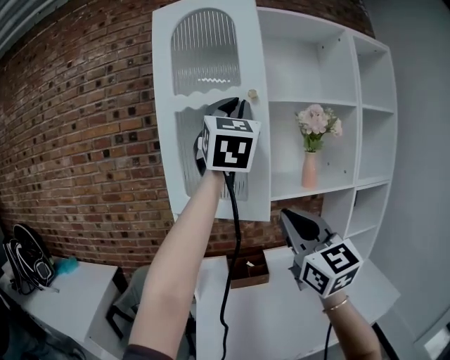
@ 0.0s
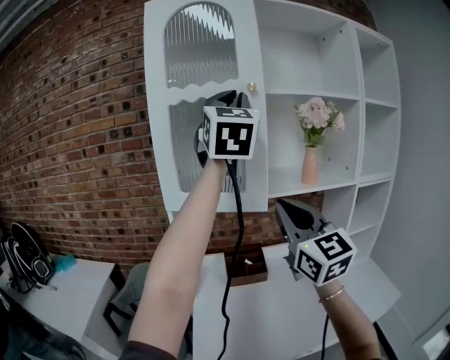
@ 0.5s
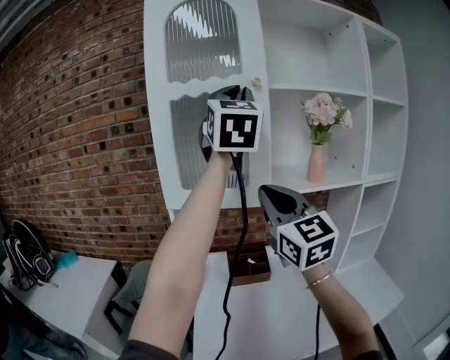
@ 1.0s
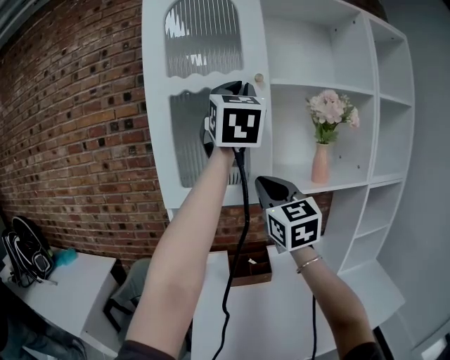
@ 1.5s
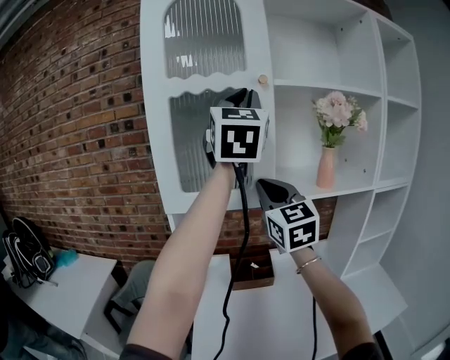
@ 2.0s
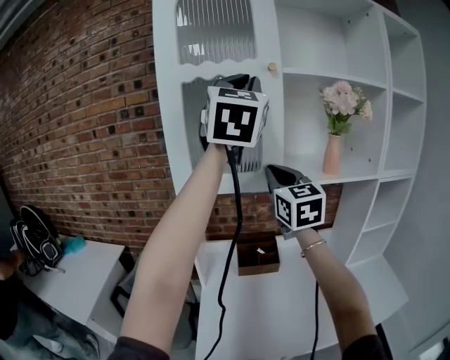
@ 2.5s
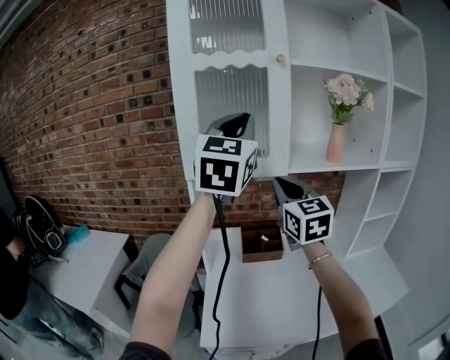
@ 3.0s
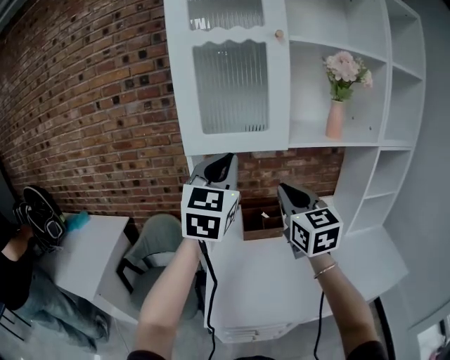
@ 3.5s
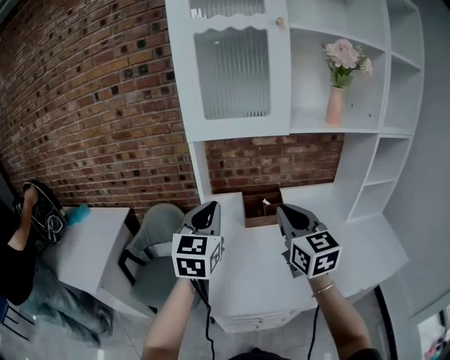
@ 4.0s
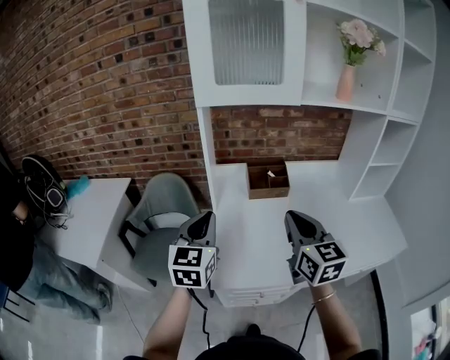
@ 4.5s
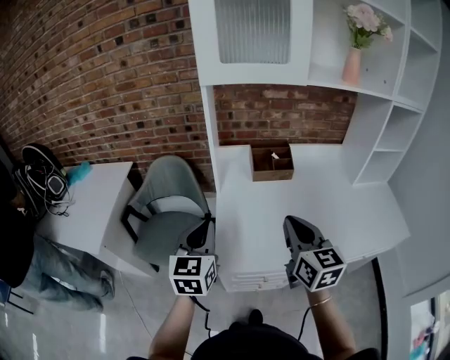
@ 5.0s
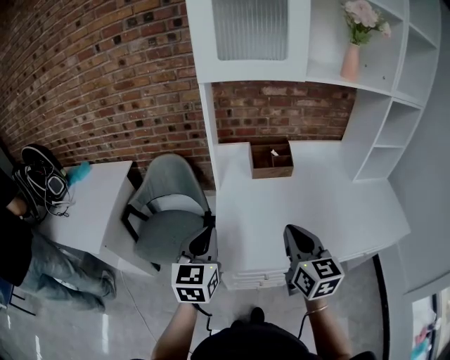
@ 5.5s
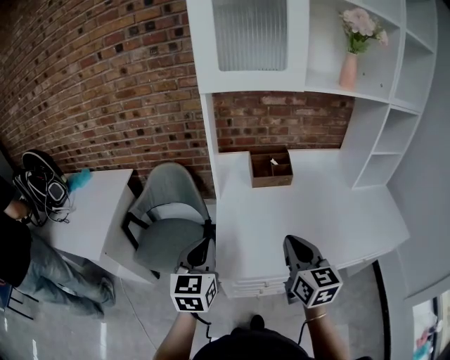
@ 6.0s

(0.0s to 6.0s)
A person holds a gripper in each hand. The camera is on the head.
0.0s - 2.0s: The right gripper moves forward, about 20 cm. Meanwhile the left gripper is displaced forward by some 10 cm.
2.0s - 4.0s: The right gripper moves downward and backward, roughly 25 cm. Meanwhile the left gripper shifts some 40 cm downward and to the left, and swivels some 30 degrees.
4.0s - 6.0s: The left gripper travels downward, backward and to the left by some 20 cm. Meanwhile the right gripper goes about 20 cm downward and backward.

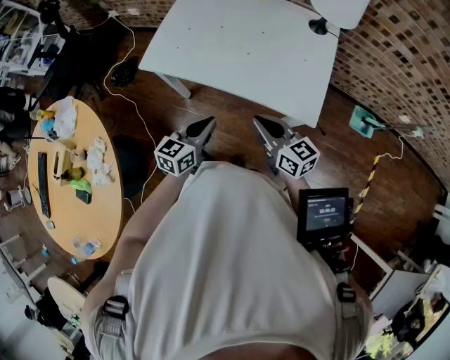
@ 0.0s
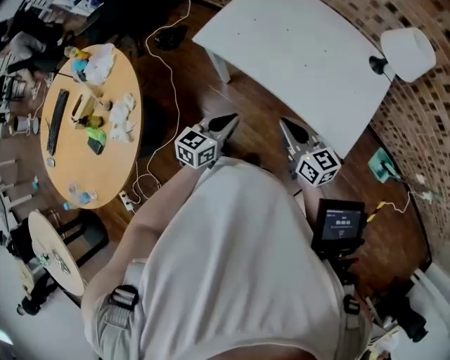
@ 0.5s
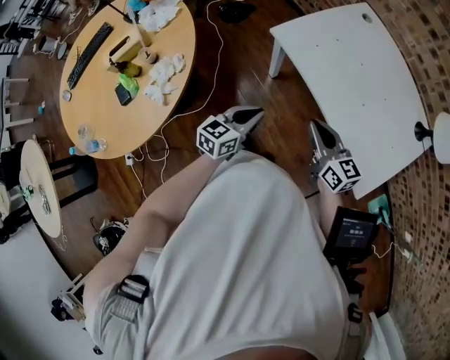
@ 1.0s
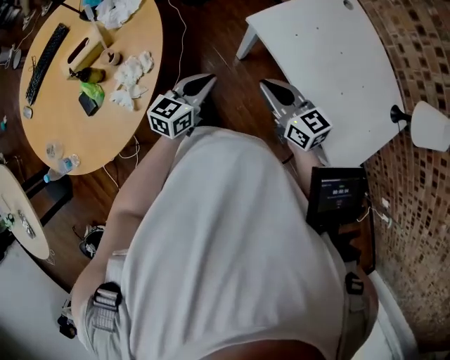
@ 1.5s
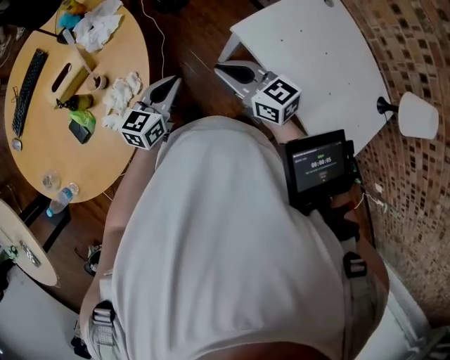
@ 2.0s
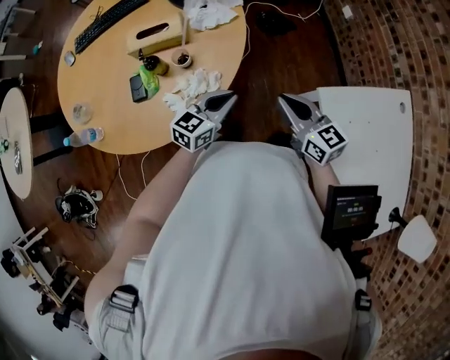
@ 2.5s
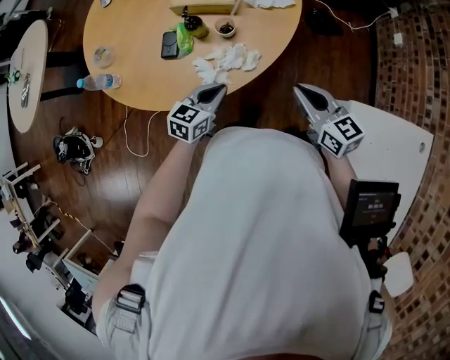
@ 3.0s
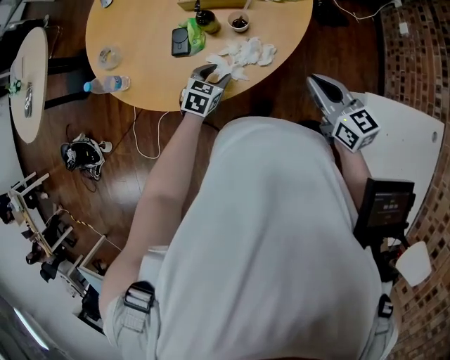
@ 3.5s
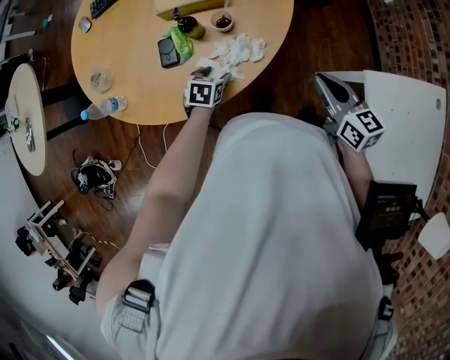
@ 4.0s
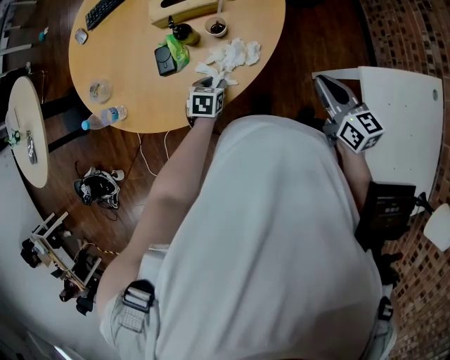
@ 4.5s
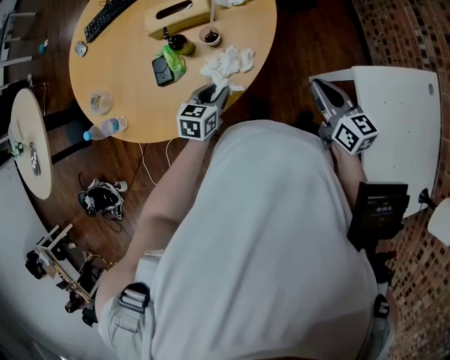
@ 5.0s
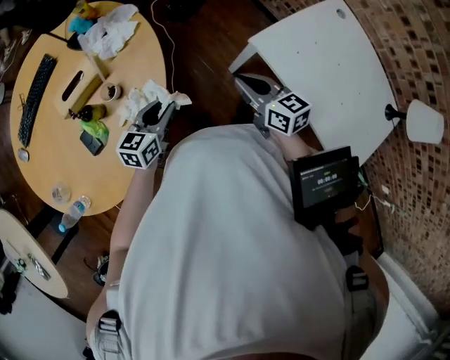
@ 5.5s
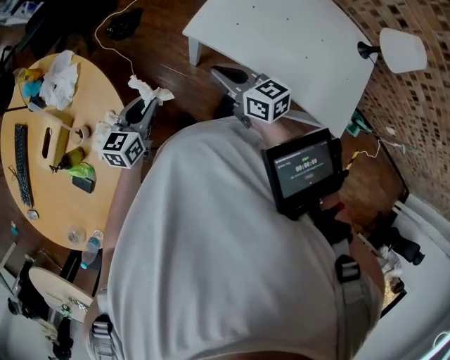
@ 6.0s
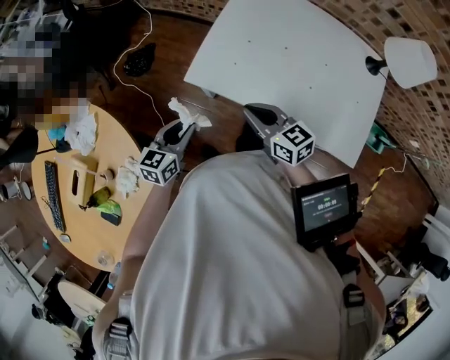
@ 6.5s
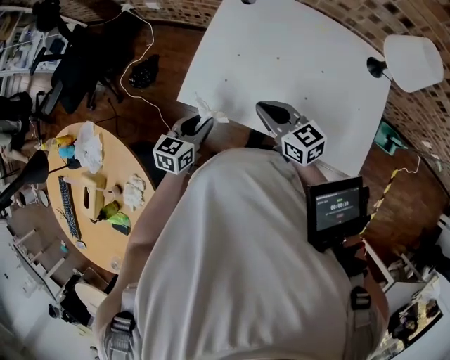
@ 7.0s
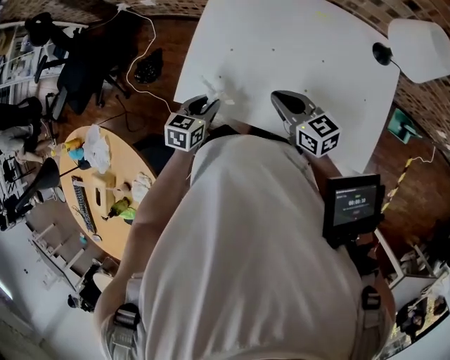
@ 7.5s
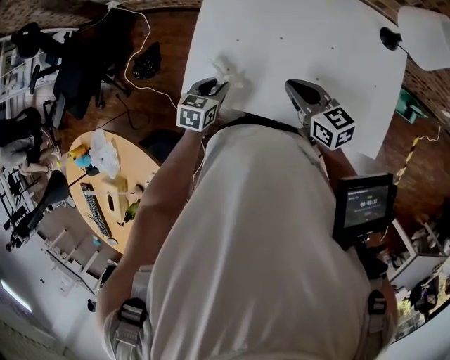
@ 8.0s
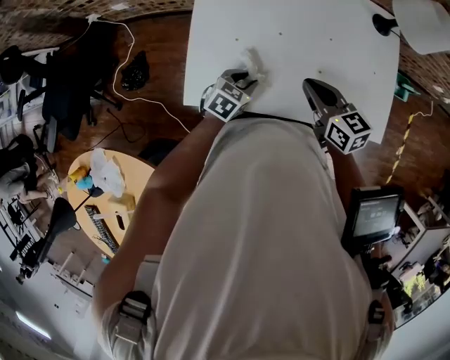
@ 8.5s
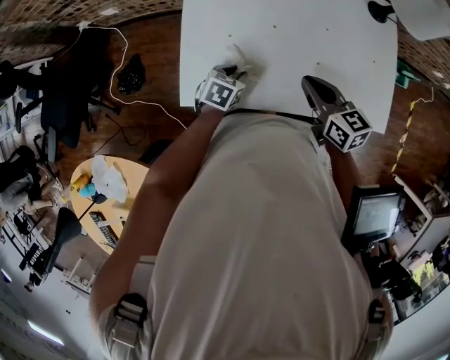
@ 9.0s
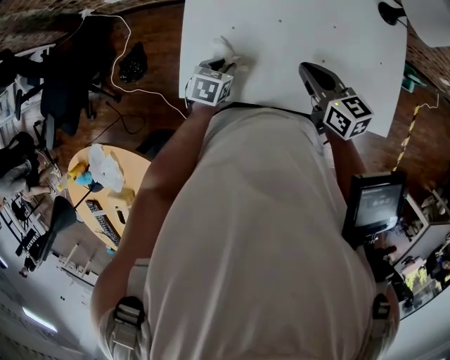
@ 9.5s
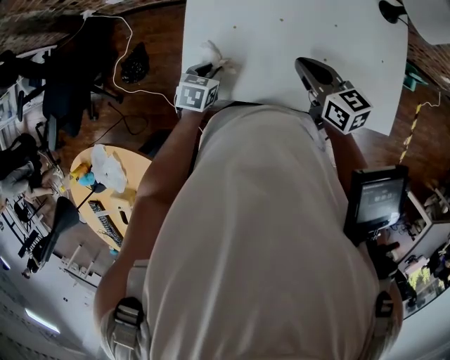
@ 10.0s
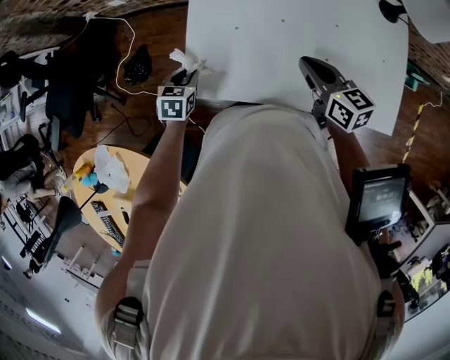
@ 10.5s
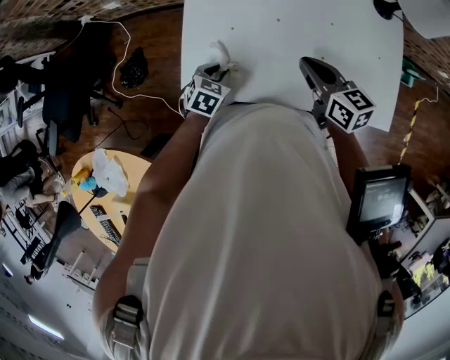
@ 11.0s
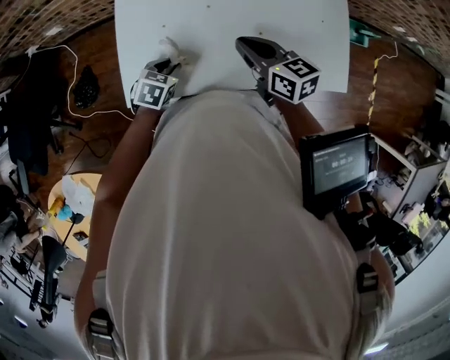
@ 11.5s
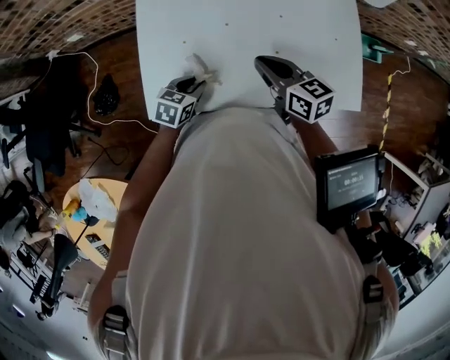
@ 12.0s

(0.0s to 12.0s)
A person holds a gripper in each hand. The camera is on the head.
0.0s - 2.0s: The left gripper ends up some 40 cm from where it was, and changes its angle by approximately 30 degrees. The right gripper ends up about 50 cm from where it was, and swivels about 40 degrees.
2.0s - 4.0s: The left gripper moves approximately 30 cm, tilts its fingers some 40 degrees downward, and opens its fingers. Meanwhile the right gripper ends up approximately 10 cm from where it was.
4.0s - 6.0s: The right gripper ends up roughly 20 cm from where it was, and swivels approximately 40 degrees. Meanwhile the left gripper changes place by approximately 30 cm, tips its fingers upward by about 30 degrees, and closes.
6.0s - 8.0s: The two grippers go approximately 35 cm to the right and forward. The right gripper swivels about 20 degrees; the left gripper swivels roughly 30 degrees.
8.0s - 10.0s: The left gripper is displaced downward by some 5 cm, and travels to the right and back again, approximately 5 cm each way.
10.0s - 12.0s: The left gripper travels to the right by approximately 10 cm.

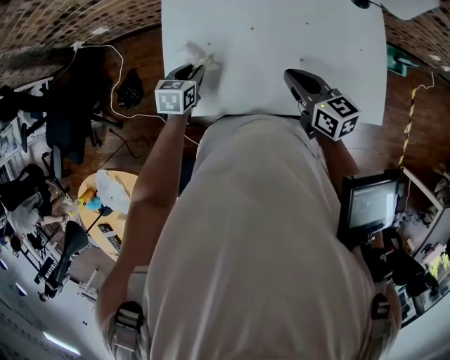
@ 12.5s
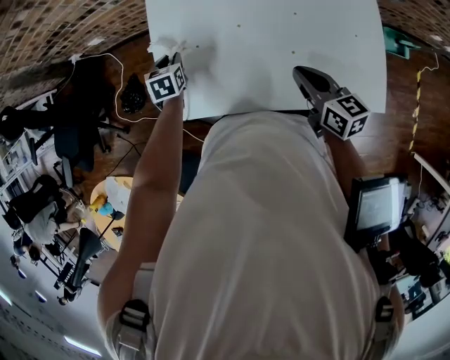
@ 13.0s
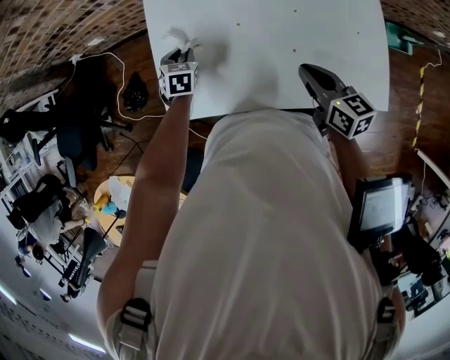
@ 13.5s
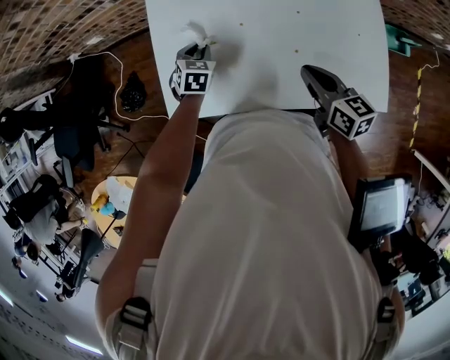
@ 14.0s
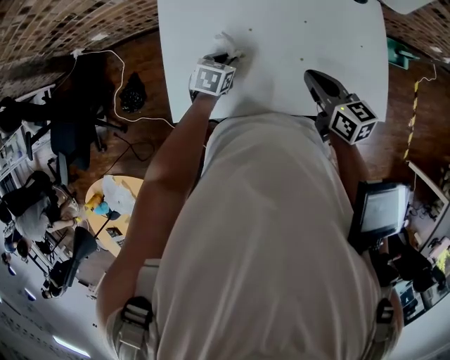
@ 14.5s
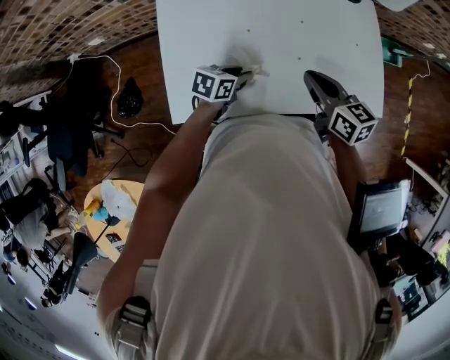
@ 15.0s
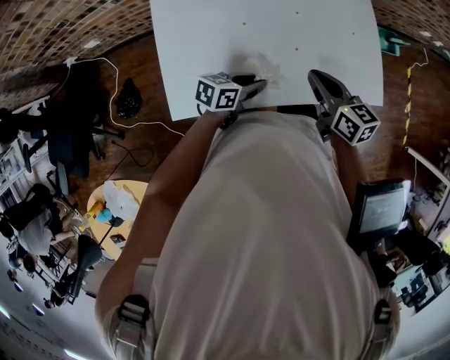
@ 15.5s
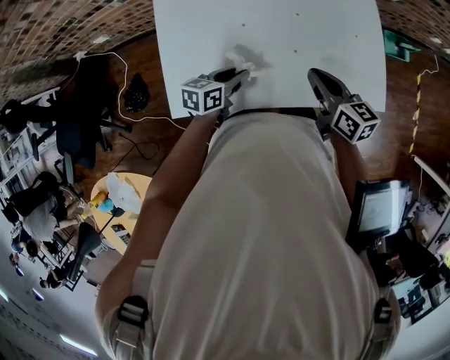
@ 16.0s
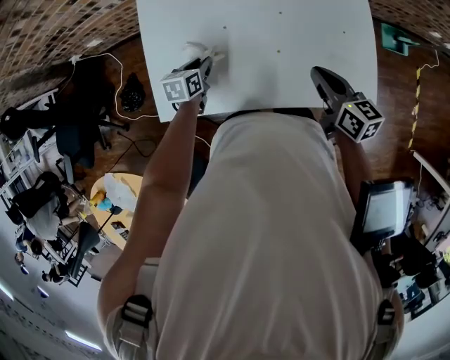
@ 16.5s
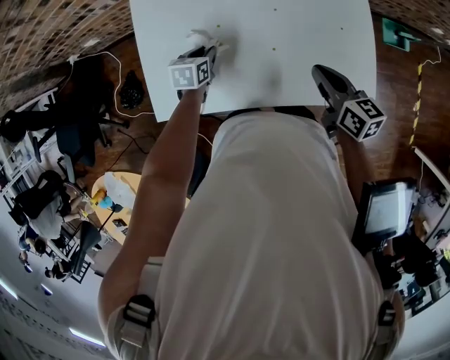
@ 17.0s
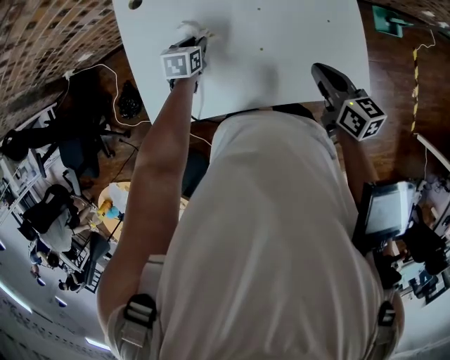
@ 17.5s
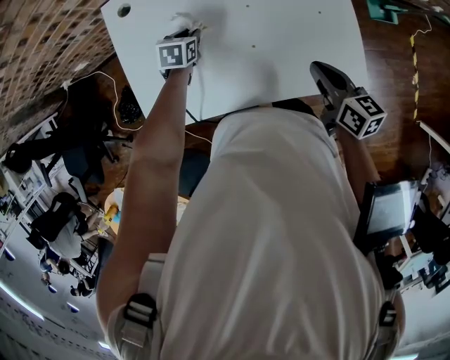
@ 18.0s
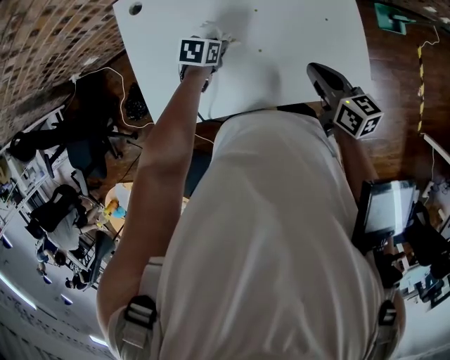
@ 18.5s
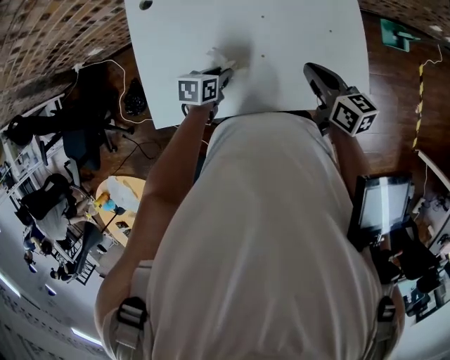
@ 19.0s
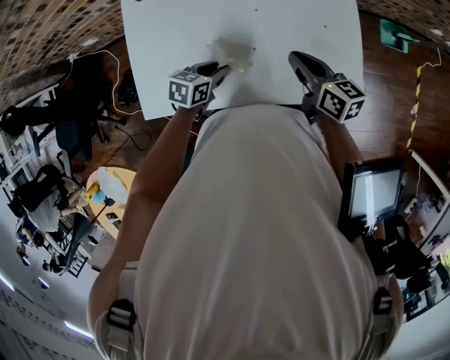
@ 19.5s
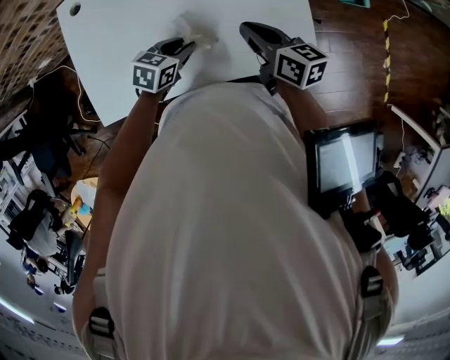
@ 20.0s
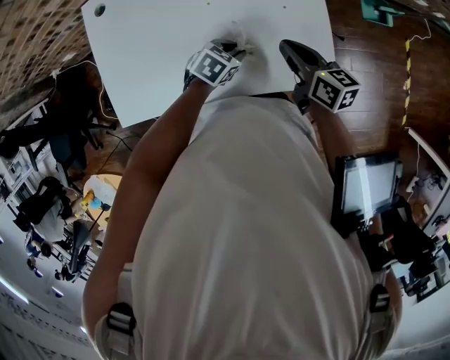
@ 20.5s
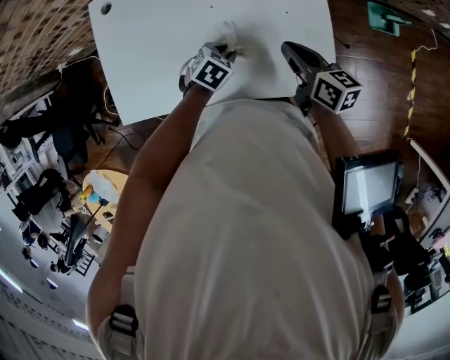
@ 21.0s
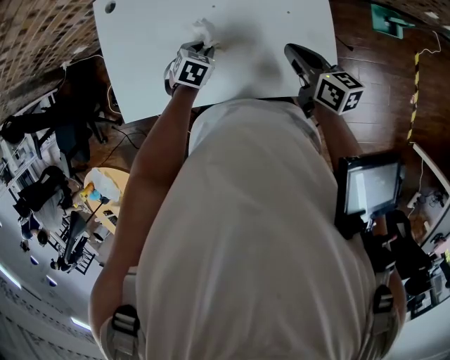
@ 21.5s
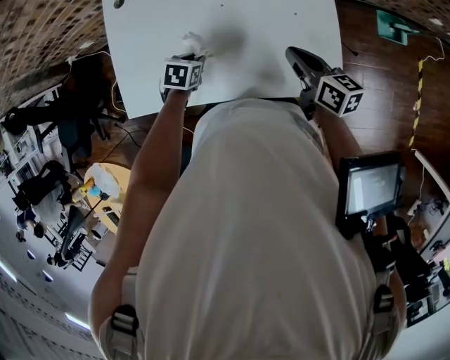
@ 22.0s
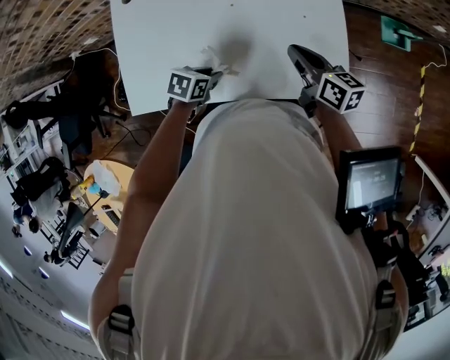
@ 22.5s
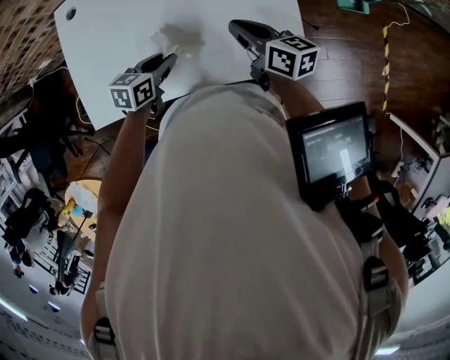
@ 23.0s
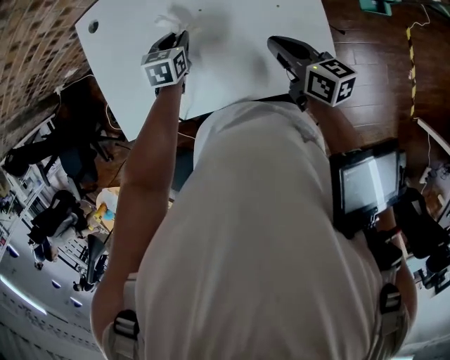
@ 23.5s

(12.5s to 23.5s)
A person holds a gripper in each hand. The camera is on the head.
12.5s - 14.5s: The left gripper heads to the right, covering approximately 10 cm, while the right gripper heads to the right, covering roughly 5 cm.
14.5s - 16.0s: The left gripper moves backward and to the right, roughly 10 cm, and swivels roughly 30 degrees.
16.0s - 18.0s: The right gripper shifts some 10 cm to the right. Meanwhile the left gripper heads forward, covering some 20 cm, and changes its angle by approximately 30 degrees.
18.0s - 20.0s: The left gripper heads to the right and backward, covering about 20 cm, and changes its angle by roughly 20 degrees.
20.0s - 21.5s: The right gripper travels to the right by about 5 cm, while the left gripper goes to the right and returns, approximately 10 cm each way, and swivels approximately 30 degrees.
21.5s - 23.5s: The left gripper heads forward and upward, covering approximately 10 cm, and rotates approximately 30 degrees.
